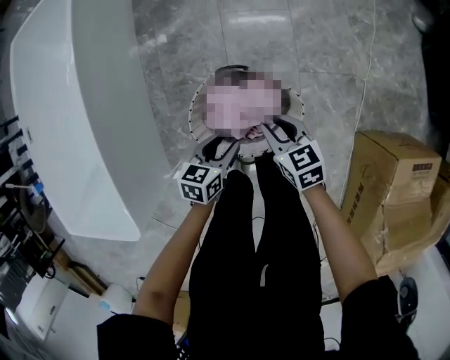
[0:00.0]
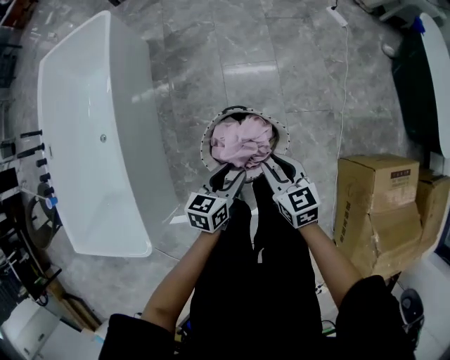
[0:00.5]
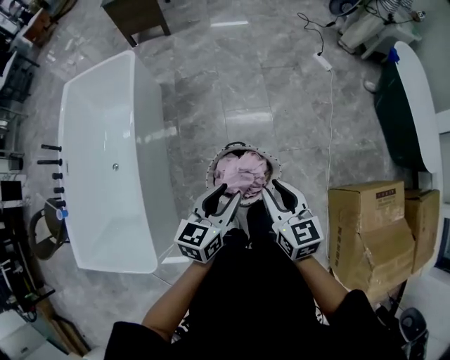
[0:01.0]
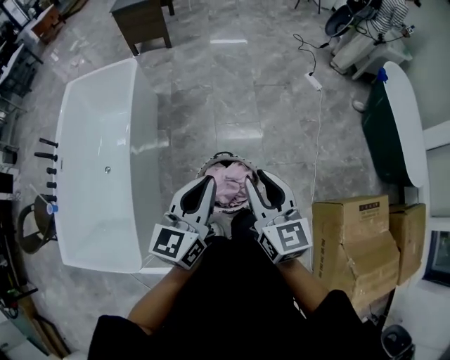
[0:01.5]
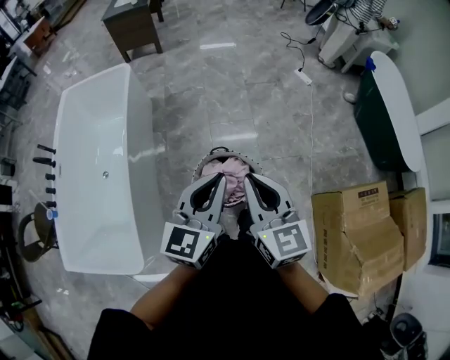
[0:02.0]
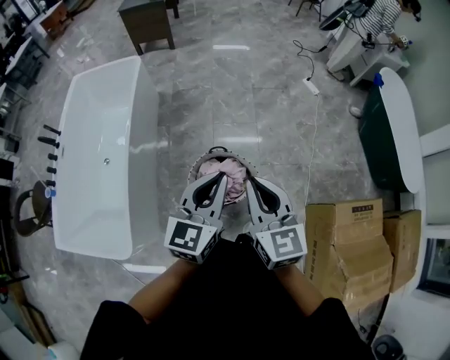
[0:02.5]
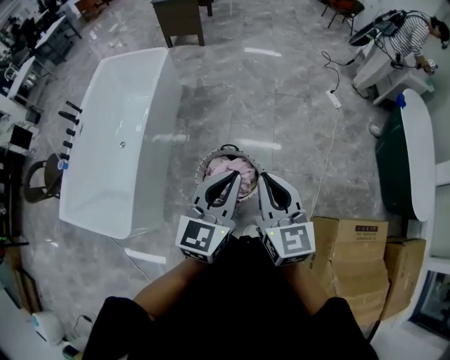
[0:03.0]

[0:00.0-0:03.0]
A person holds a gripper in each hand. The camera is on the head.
0:00.0 to 0:01.5: Both grippers move upward, about 60 cm. The right gripper tips its fingers upward by some 30 degrees. Meanwhile the left gripper points its fingers about 40 degrees further upward, and closes up.
0:01.5 to 0:03.0: Both grippers move to the right and backward, about 15 cm. The right gripper closes its fingers.

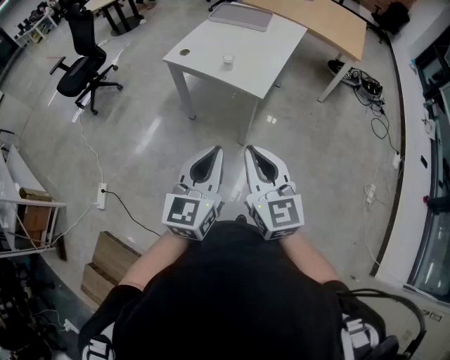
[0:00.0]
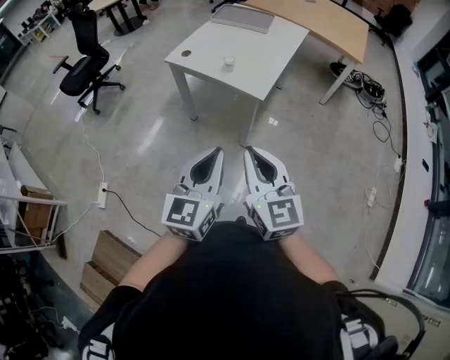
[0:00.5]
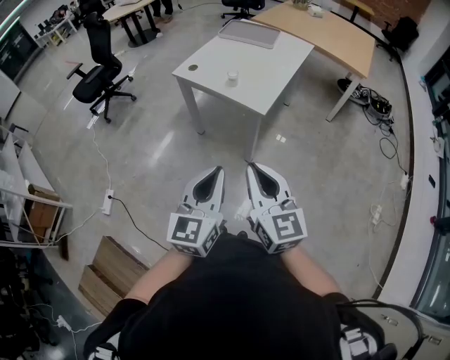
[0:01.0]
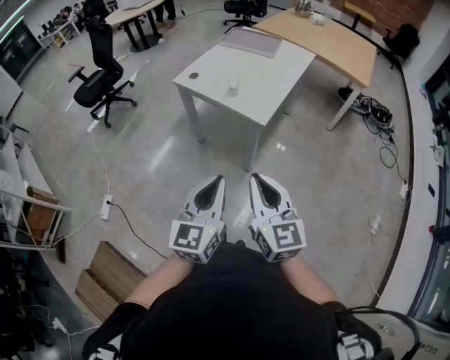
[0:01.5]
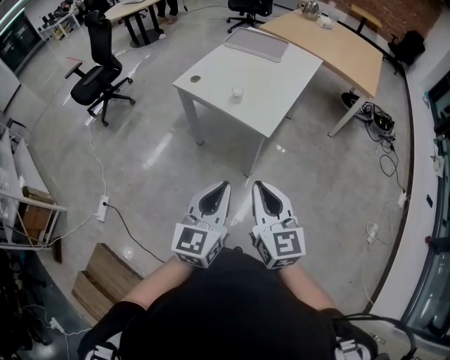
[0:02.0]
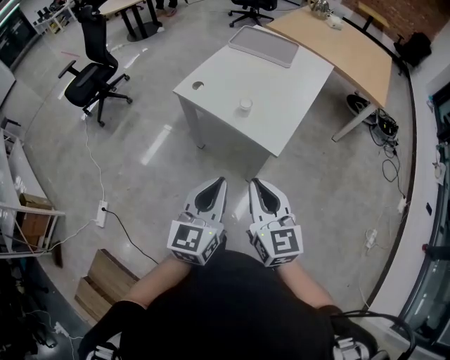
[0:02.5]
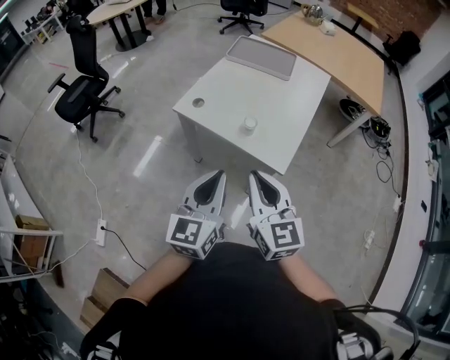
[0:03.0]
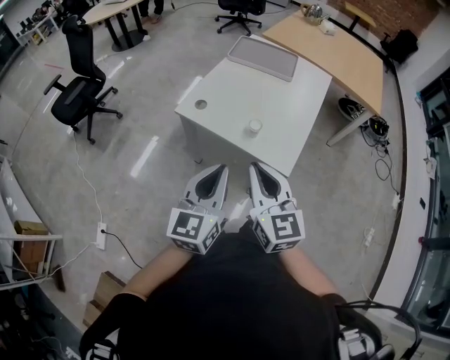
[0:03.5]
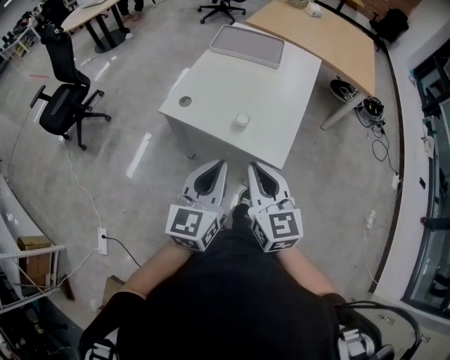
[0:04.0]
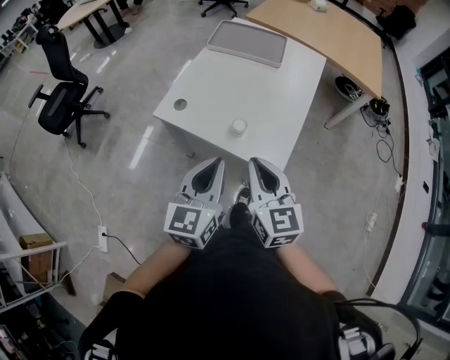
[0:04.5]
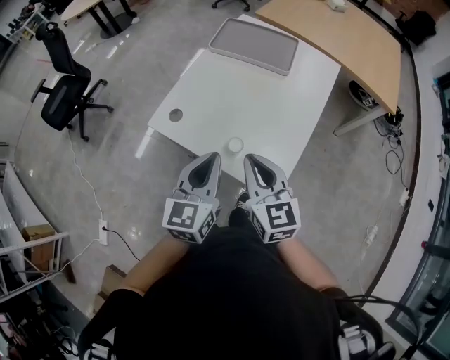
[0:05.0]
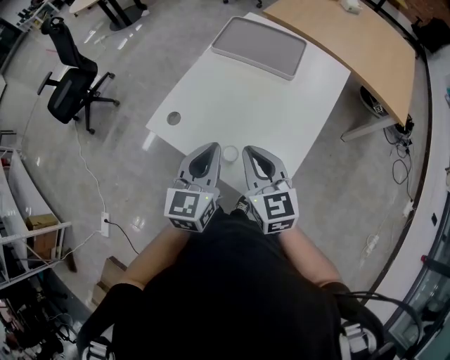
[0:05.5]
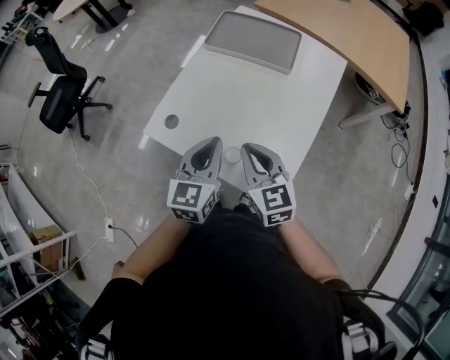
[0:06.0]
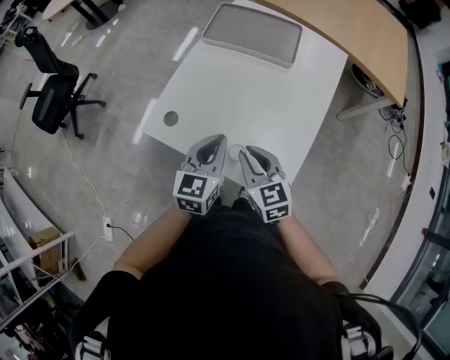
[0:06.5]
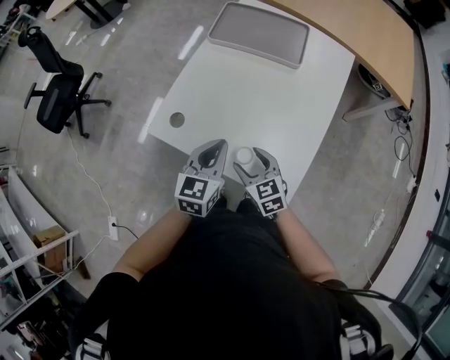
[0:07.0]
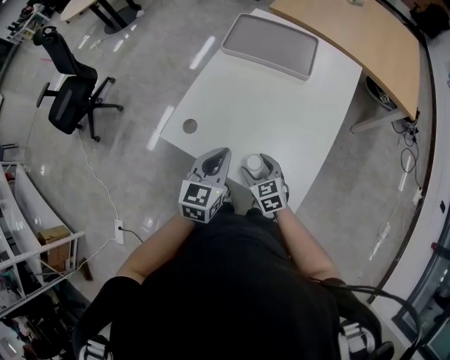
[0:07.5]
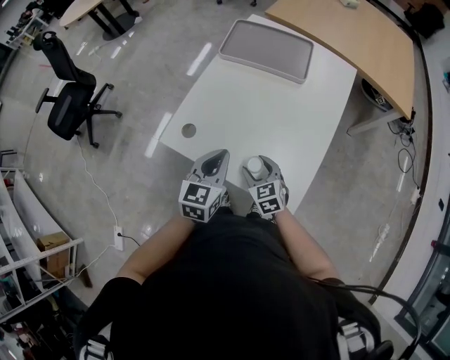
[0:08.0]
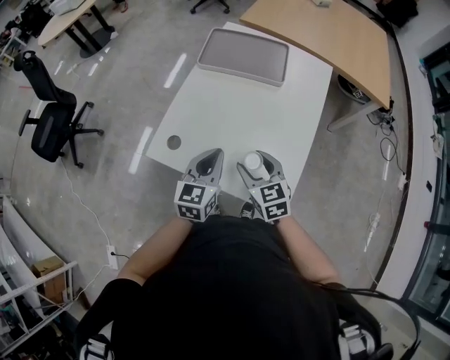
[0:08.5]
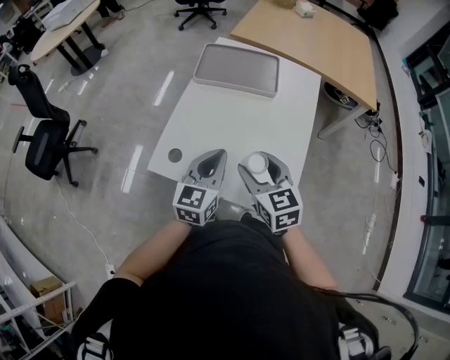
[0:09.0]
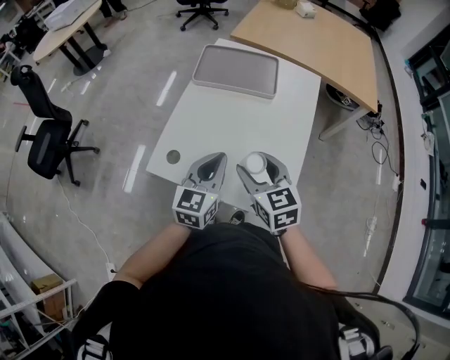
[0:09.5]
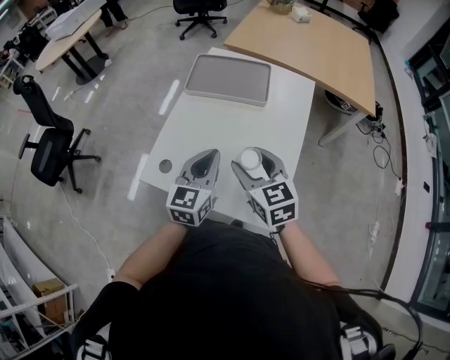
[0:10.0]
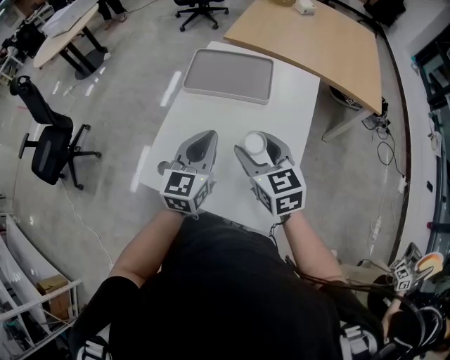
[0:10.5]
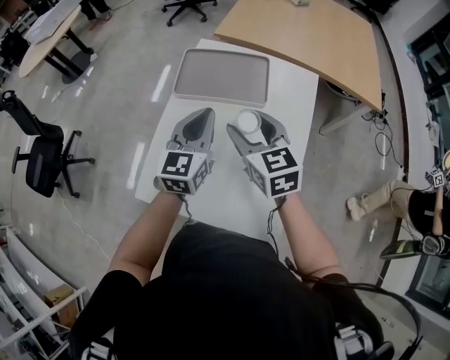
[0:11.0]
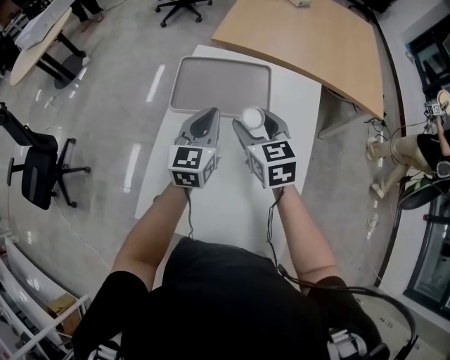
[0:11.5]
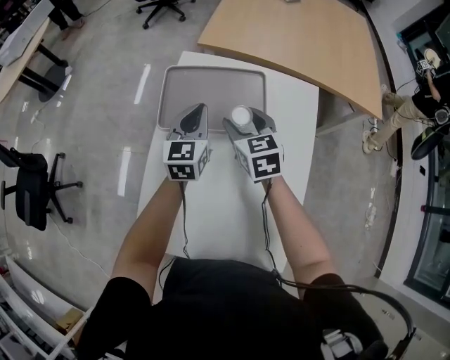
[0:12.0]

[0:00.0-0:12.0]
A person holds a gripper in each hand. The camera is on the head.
0:00.0 to 0:02.0: The two grippers go some 5 cm forward.
0:02.0 to 0:04.0: Both grippers move forward and to the left, some 30 cm.
0:04.0 to 0:06.0: The grippers both shift forward by about 30 cm.
0:06.0 to 0:08.0: The left gripper travels downward by about 5 cm. Meanwhile the right gripper moves downward, about 20 cm, and opens.
0:08.0 to 0:10.0: The right gripper travels upward by about 25 cm, while the left gripper heads upward, covering some 10 cm.
0:10.0 to 0:12.0: The two grippers go about 40 cm forward.

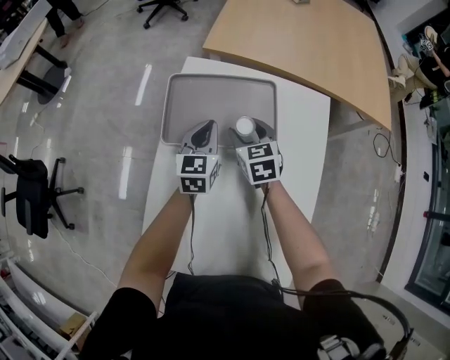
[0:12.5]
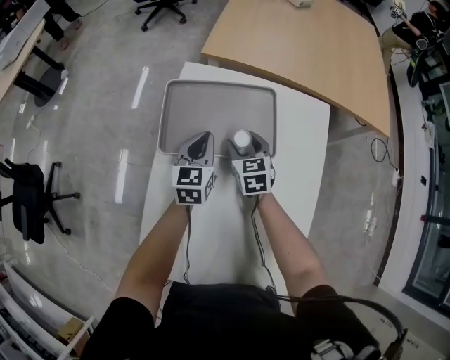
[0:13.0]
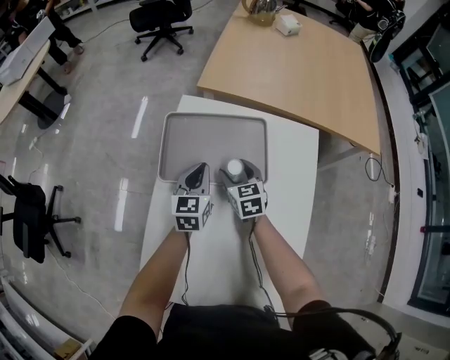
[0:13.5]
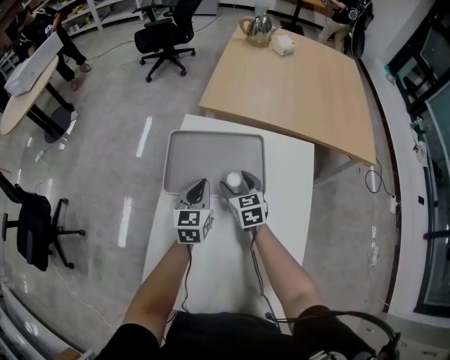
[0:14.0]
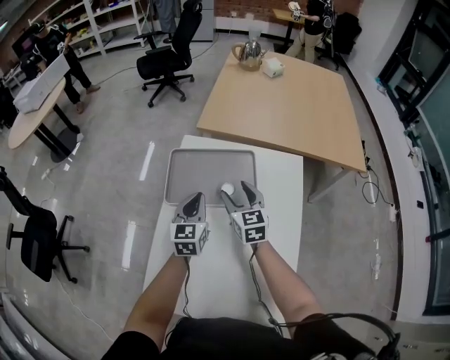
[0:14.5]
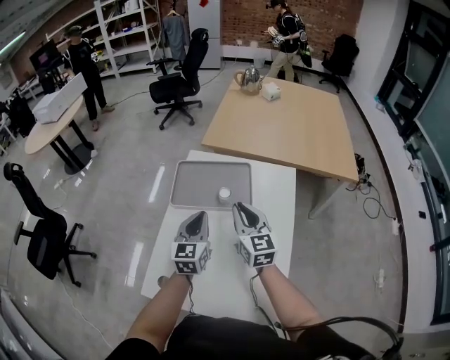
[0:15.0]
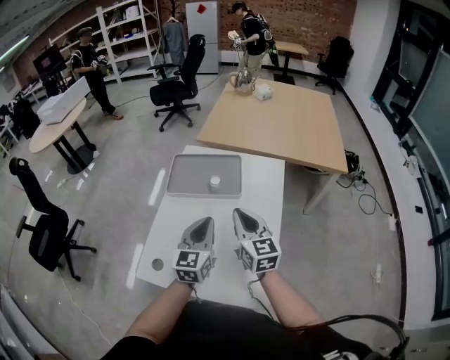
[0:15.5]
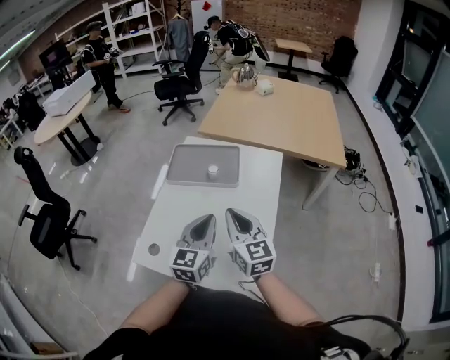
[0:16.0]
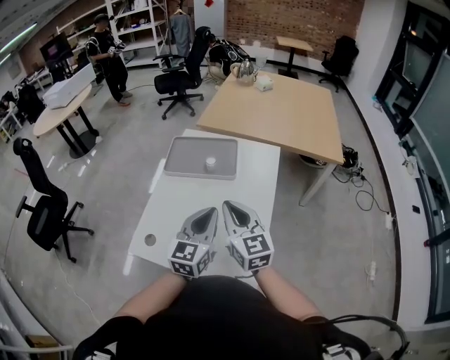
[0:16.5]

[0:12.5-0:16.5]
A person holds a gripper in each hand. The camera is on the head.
0:12.5 to 0:14.5: The grippers both shift upward and backward by some 10 cm.
0:14.5 to 0:16.5: The left gripper heads backward, to the right and upward, covering some 40 cm. Meanwhile the right gripper moves backward and upward, about 40 cm, and closes its fingers.

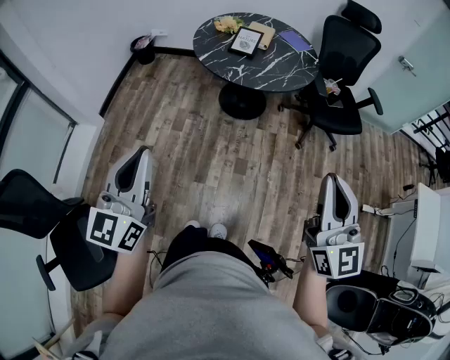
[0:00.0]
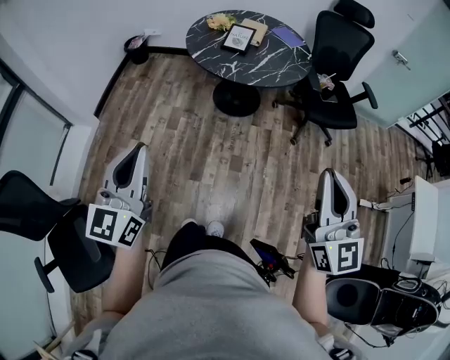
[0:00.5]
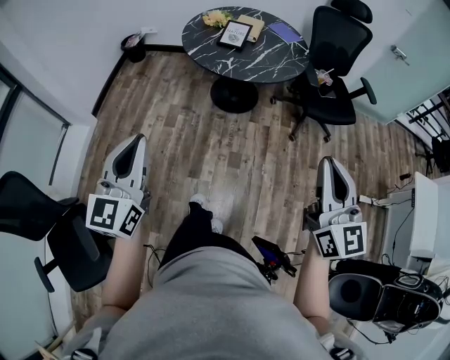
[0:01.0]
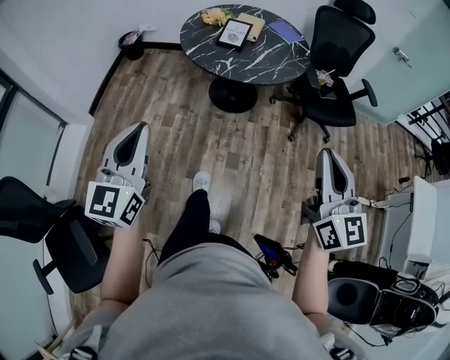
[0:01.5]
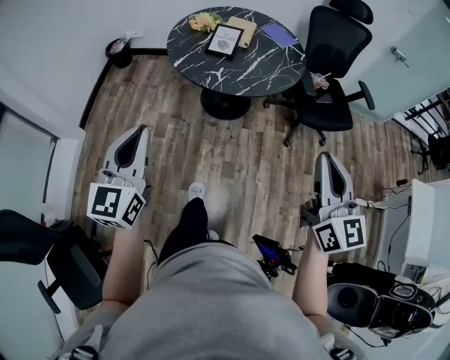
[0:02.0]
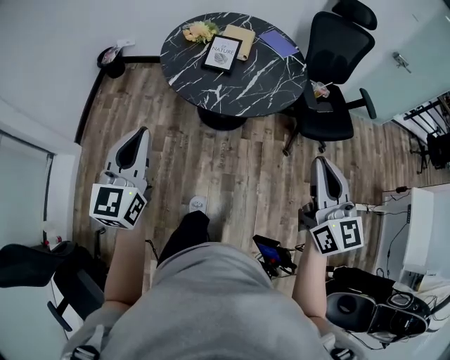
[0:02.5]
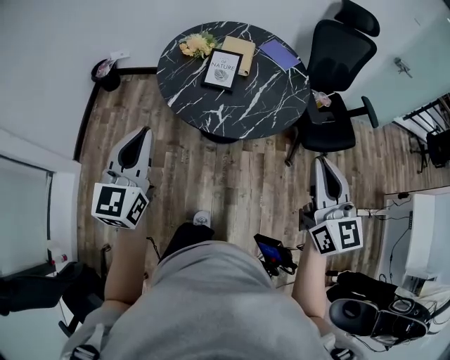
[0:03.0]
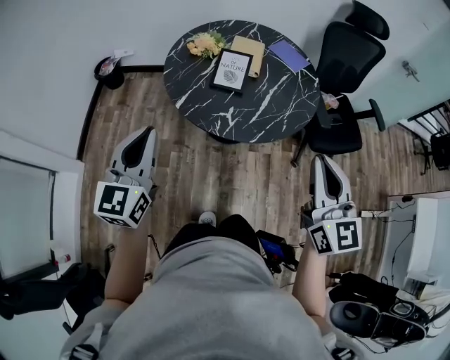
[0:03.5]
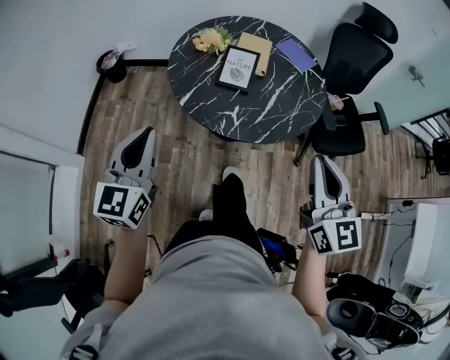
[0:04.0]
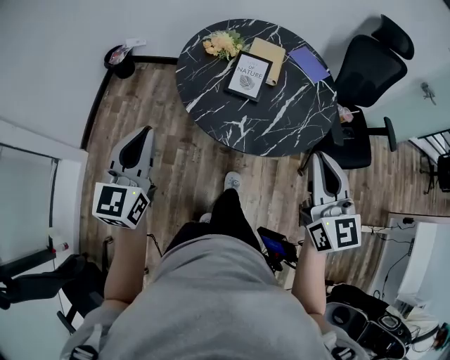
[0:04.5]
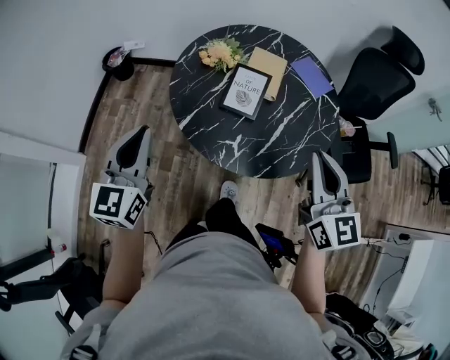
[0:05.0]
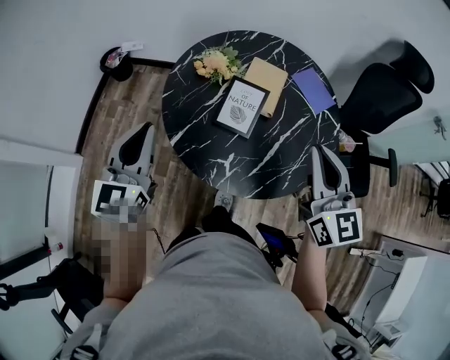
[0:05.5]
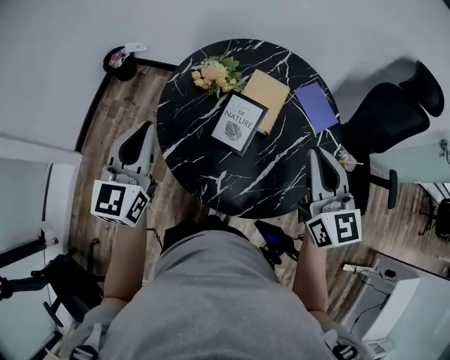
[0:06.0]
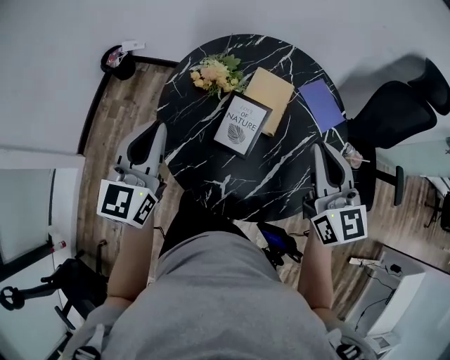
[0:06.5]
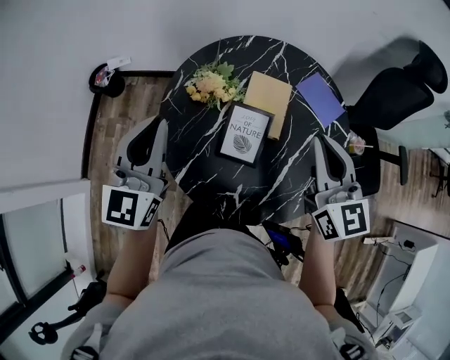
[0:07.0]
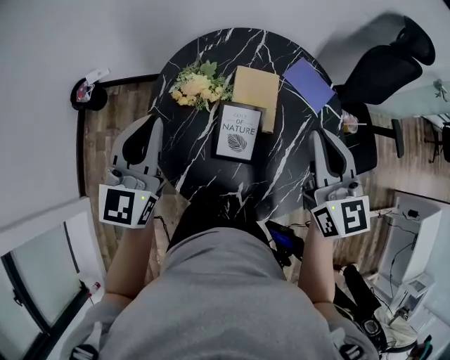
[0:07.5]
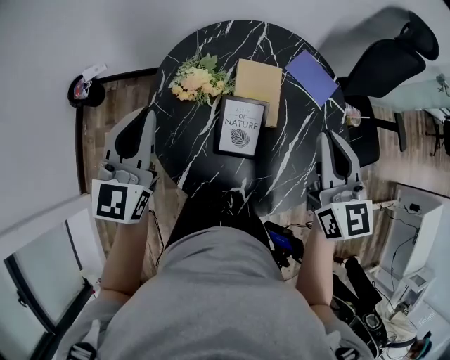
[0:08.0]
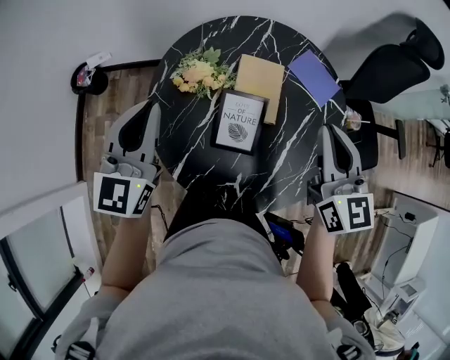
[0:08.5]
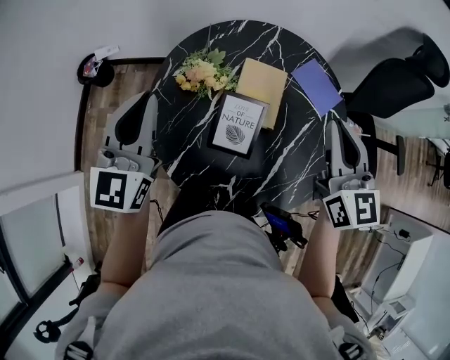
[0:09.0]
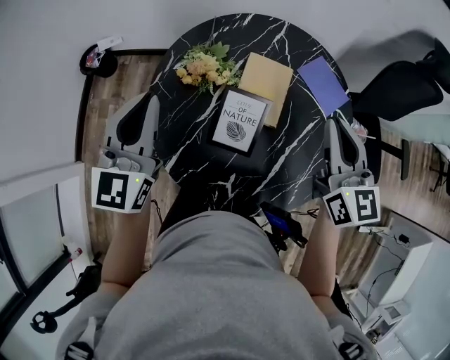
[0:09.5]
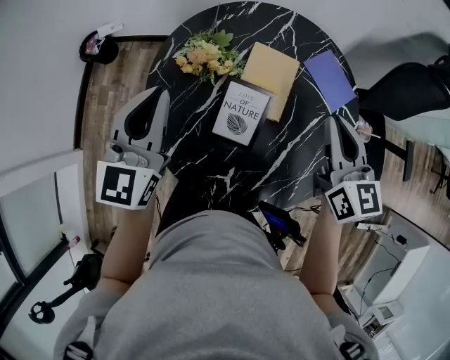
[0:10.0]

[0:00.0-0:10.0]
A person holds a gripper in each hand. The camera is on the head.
0:00.0 to 0:02.0: The two grippers go roughly 15 cm forward.
0:02.0 to 0:04.0: The left gripper heads forward, covering about 25 cm; the right gripper travels forward and to the left by roughly 25 cm.
0:04.0 to 0:06.0: The grippers both shift forward by about 30 cm.
0:06.0 to 0:08.0: The right gripper travels forward by some 5 cm, and swivels roughly 20 degrees. The left gripper heads forward, covering about 15 cm, and turns by some 20 degrees.
0:08.0 to 0:10.0: The right gripper travels downward and forward by about 10 cm. Meanwhile the left gripper moves about 5 cm.
